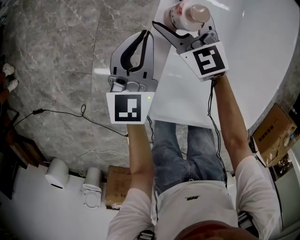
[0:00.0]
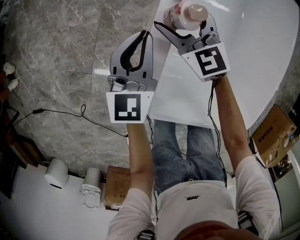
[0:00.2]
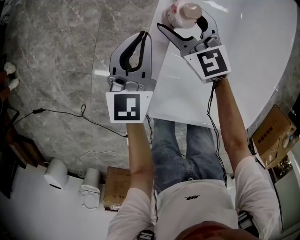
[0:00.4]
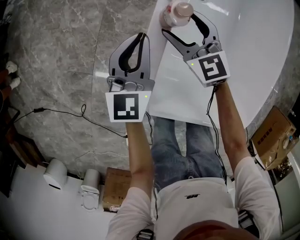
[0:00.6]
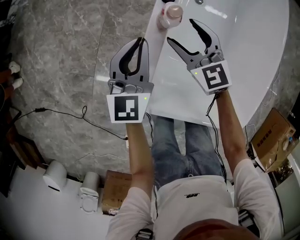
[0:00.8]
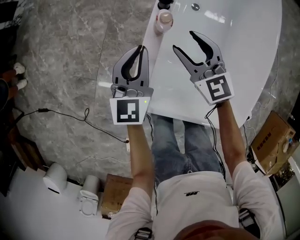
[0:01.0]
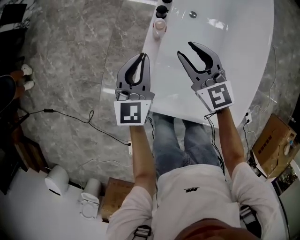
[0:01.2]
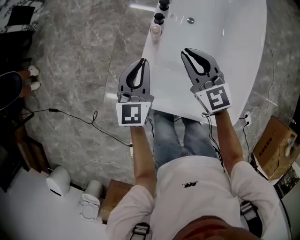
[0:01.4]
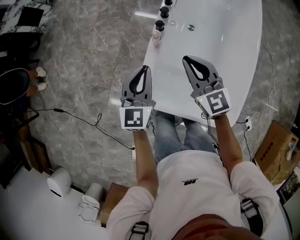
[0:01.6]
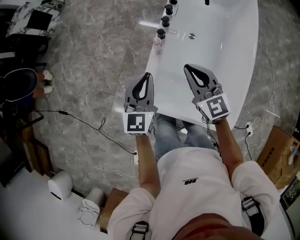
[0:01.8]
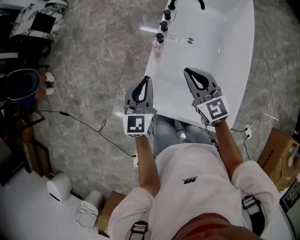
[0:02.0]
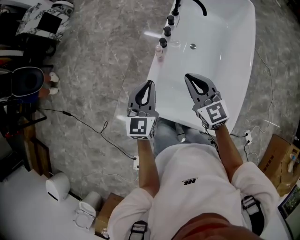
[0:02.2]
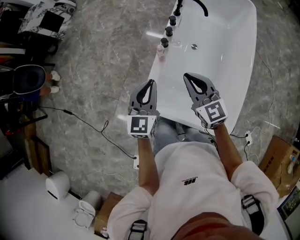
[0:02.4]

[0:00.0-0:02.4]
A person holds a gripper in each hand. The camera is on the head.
0:00.0 to 0:01.2: The two grippers go about 20 cm upward and backward. The right gripper closes up.
0:01.2 to 0:02.4: Both grippers travel together upward and backward, some 25 cm. The right gripper closes its fingers.

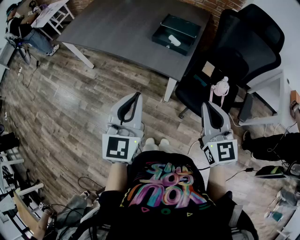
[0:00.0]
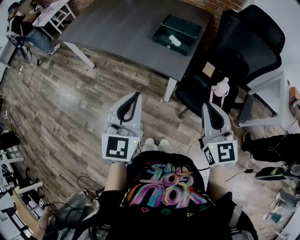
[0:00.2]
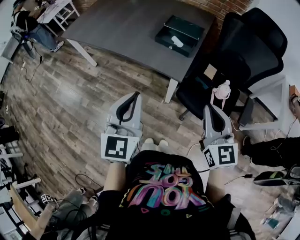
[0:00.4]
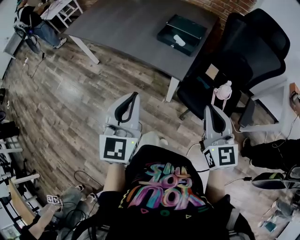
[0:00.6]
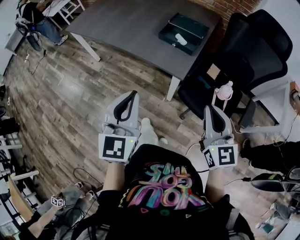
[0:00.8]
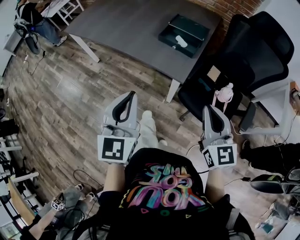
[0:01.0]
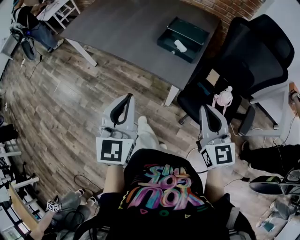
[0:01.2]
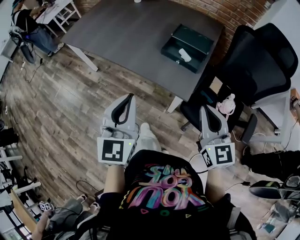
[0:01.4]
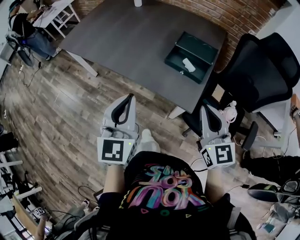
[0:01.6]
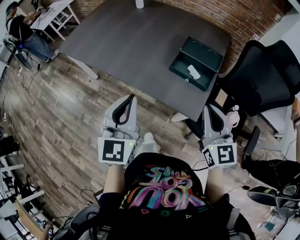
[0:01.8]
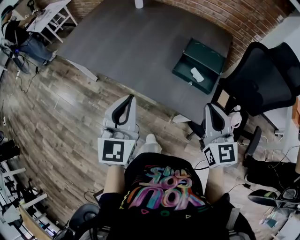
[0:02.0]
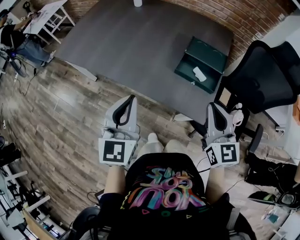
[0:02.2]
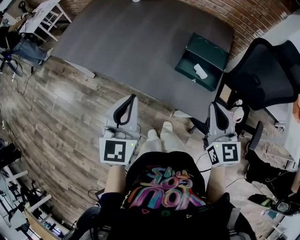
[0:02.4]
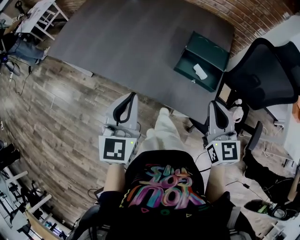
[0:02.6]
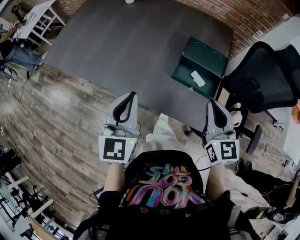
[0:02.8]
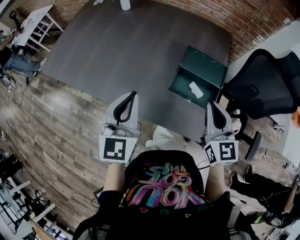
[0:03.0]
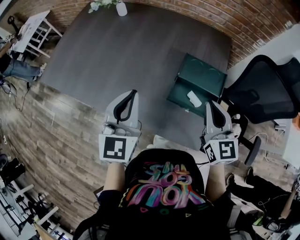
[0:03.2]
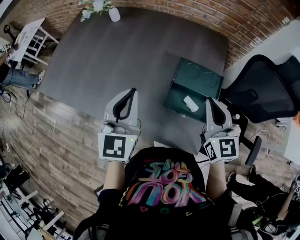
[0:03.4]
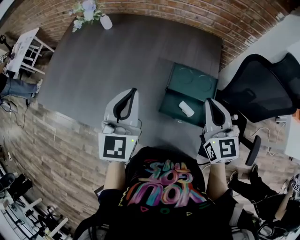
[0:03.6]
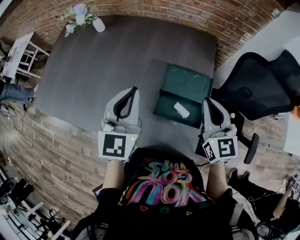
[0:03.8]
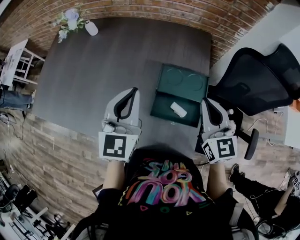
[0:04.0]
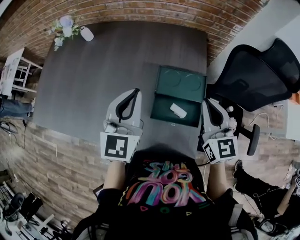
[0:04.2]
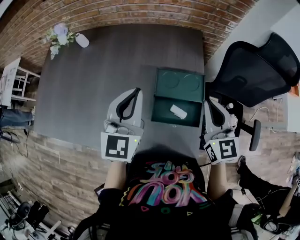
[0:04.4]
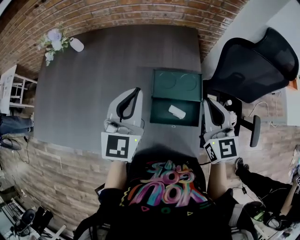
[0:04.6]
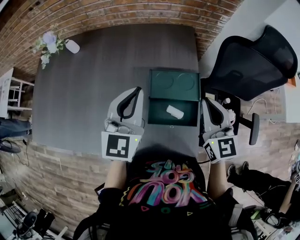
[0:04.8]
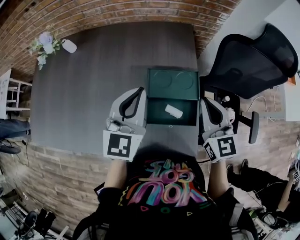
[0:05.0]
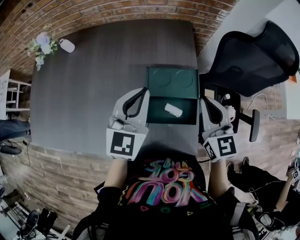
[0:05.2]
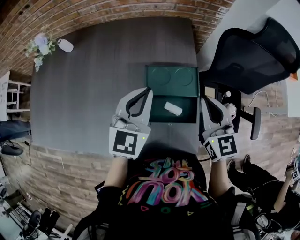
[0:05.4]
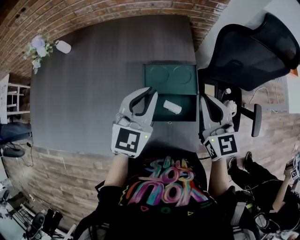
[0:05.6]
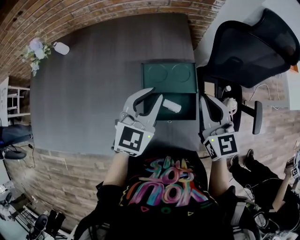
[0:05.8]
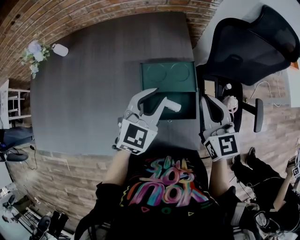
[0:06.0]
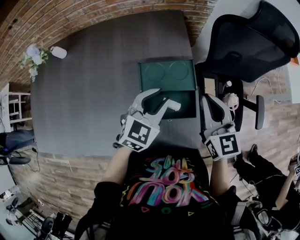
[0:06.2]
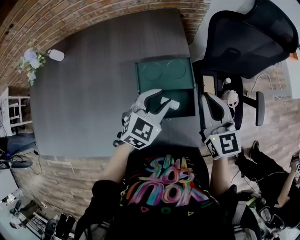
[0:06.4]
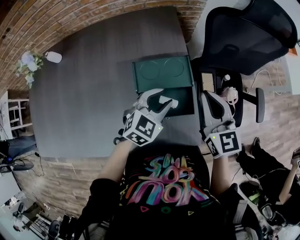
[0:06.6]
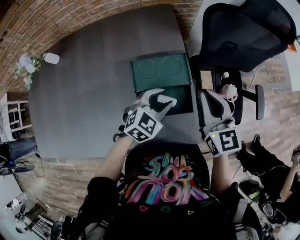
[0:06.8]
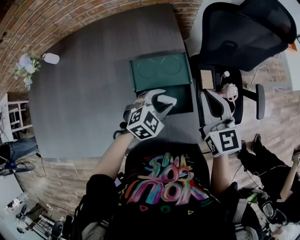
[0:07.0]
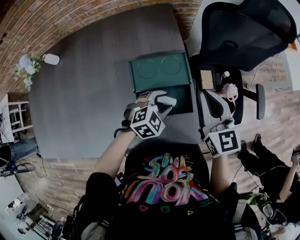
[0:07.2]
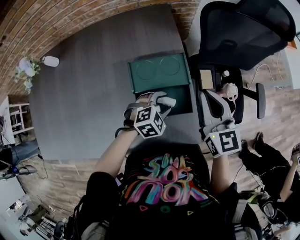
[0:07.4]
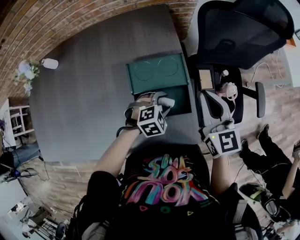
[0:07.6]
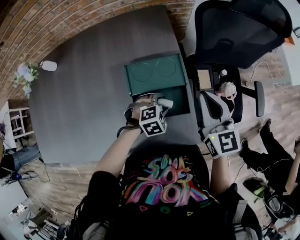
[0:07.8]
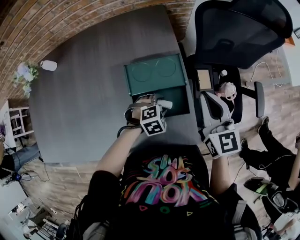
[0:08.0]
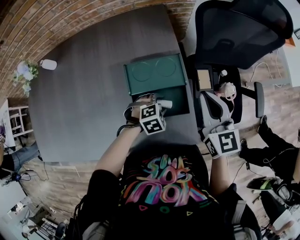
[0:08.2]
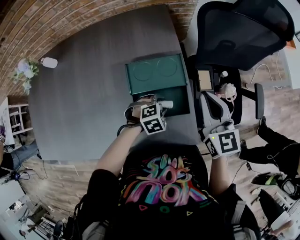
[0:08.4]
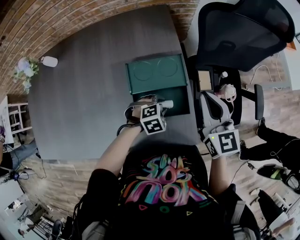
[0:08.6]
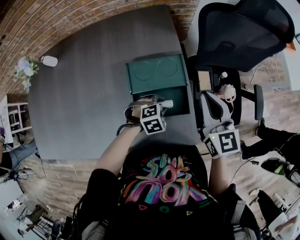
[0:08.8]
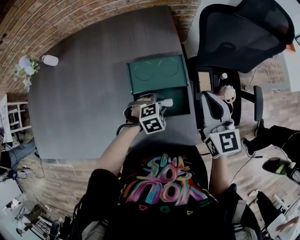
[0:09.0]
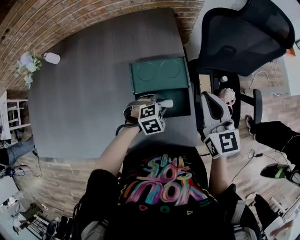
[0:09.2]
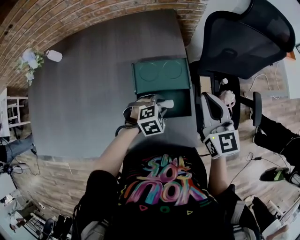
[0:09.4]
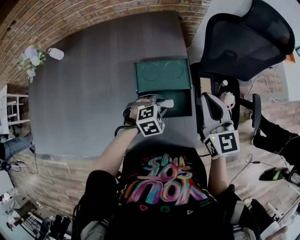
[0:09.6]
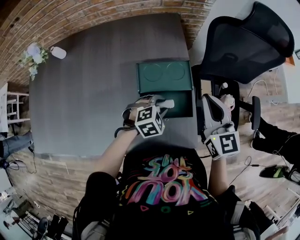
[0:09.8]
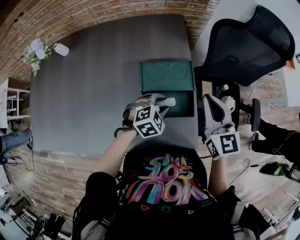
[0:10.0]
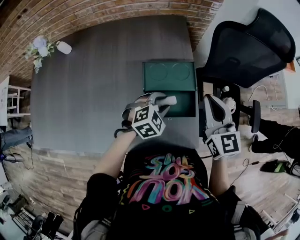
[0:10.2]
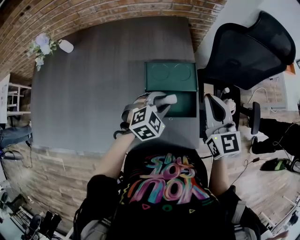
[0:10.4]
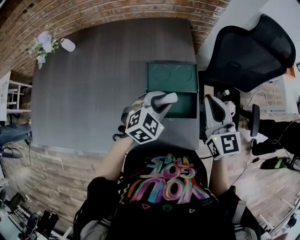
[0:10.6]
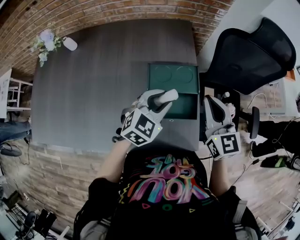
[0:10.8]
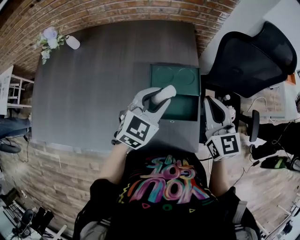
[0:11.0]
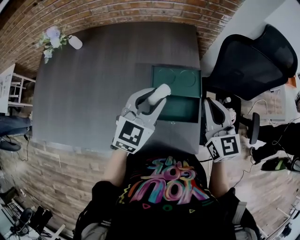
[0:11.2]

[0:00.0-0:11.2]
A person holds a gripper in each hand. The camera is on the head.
0:00.0 to 0:01.6: The left gripper goes approximately 20 cm forward and to the left, while the right gripper heads forward, covering approximately 15 cm.
0:01.6 to 0:03.2: Both grippers move forward, approximately 25 cm.
0:03.2 to 0:04.8: The left gripper shifts approximately 20 cm forward and to the right, and swivels roughly 20 degrees, while the right gripper moves to the right and forward, some 10 cm.
0:04.8 to 0:06.4: The right gripper shifts by some 5 cm; the left gripper heads downward and to the right, covering about 20 cm, swivels about 40 degrees, and opens up.
0:06.4 to 0:08.0: The left gripper moves downward, some 15 cm, and points its fingers about 30 degrees further downward.
0:08.0 to 0:09.6: There are only small adjustments of the grippers.
0:09.6 to 0:11.2: The left gripper moves upward and to the left, some 25 cm, and angles its fingers upward, by roughly 40 degrees, while the right gripper changes place by roughly 5 cm.

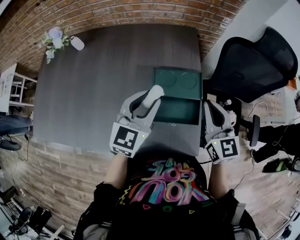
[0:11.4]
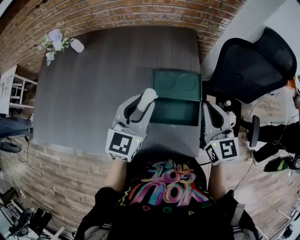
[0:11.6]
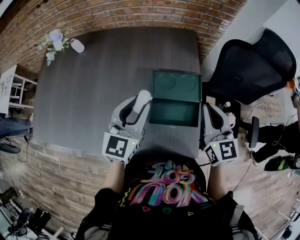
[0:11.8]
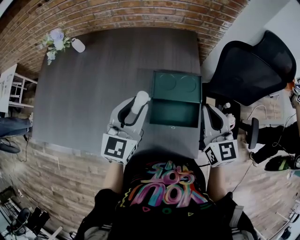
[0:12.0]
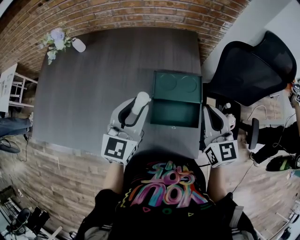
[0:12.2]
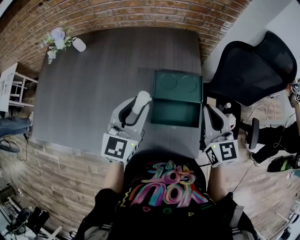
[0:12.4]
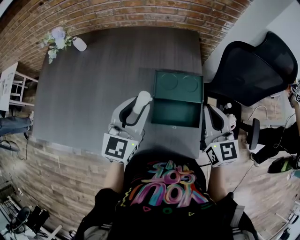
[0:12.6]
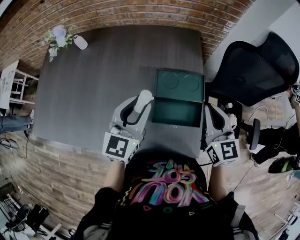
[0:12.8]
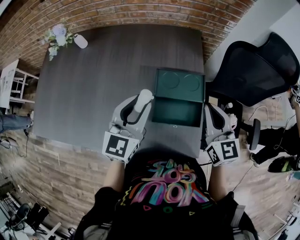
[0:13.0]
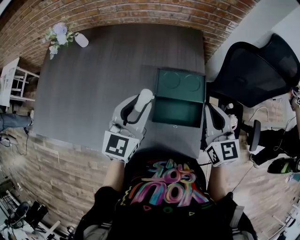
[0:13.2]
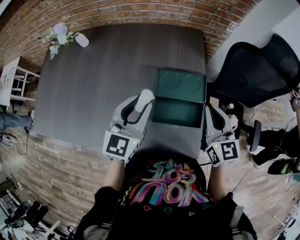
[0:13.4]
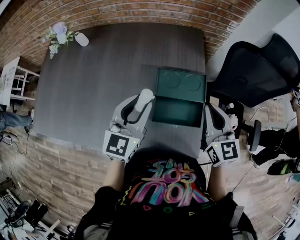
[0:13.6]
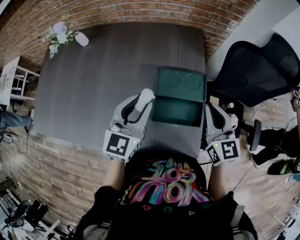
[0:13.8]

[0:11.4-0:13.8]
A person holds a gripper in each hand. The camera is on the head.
0:11.4 to 0:12.6: There are only small adjustments of the grippers.
0:12.6 to 0:13.8: Both grippers stay put.

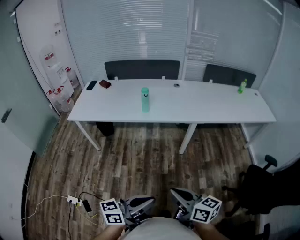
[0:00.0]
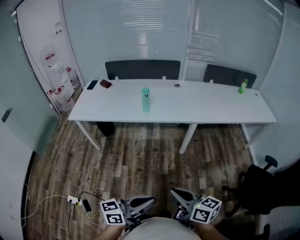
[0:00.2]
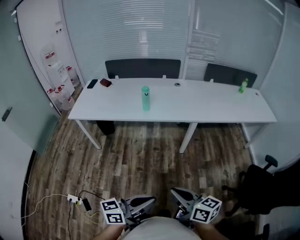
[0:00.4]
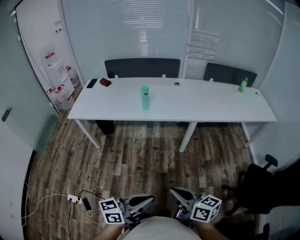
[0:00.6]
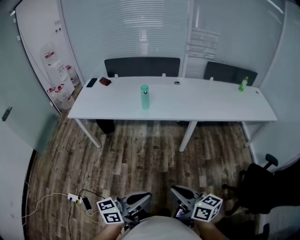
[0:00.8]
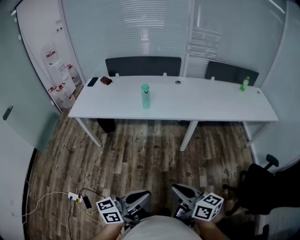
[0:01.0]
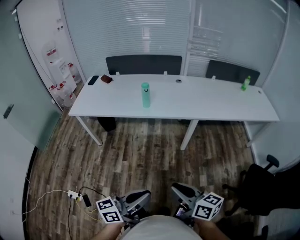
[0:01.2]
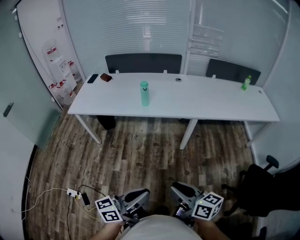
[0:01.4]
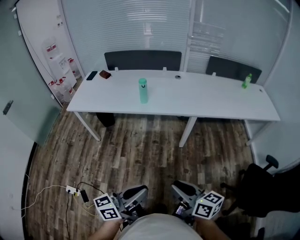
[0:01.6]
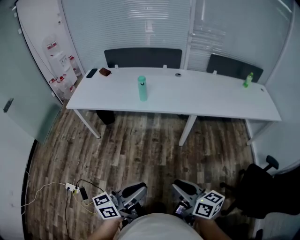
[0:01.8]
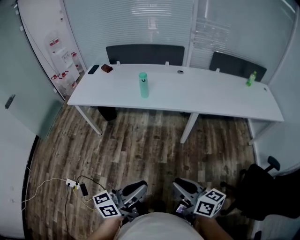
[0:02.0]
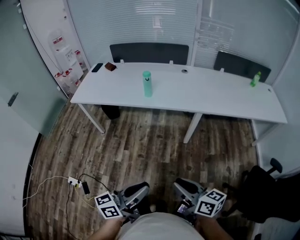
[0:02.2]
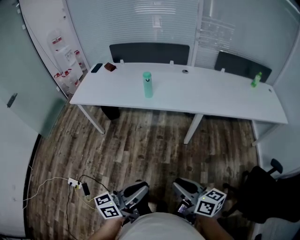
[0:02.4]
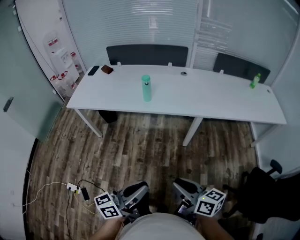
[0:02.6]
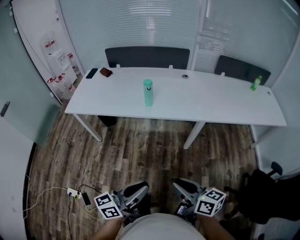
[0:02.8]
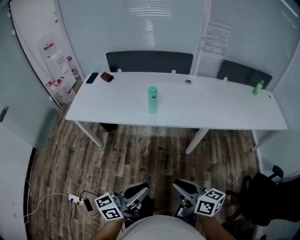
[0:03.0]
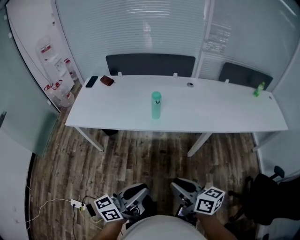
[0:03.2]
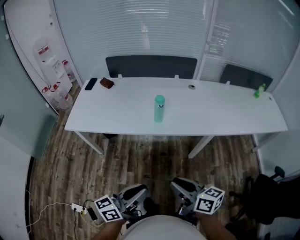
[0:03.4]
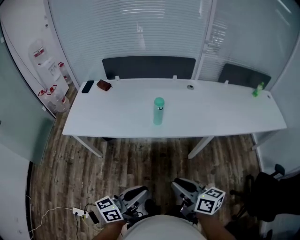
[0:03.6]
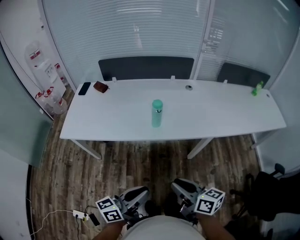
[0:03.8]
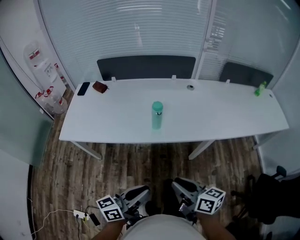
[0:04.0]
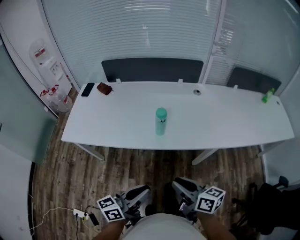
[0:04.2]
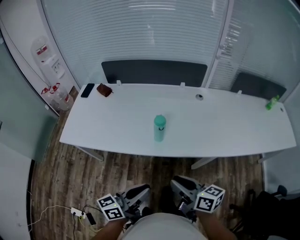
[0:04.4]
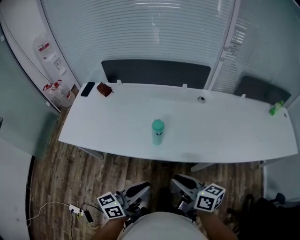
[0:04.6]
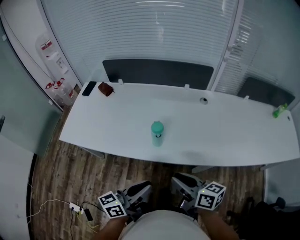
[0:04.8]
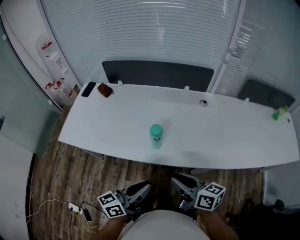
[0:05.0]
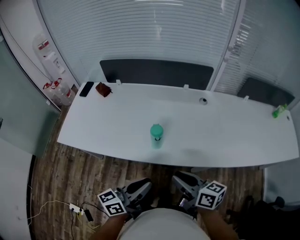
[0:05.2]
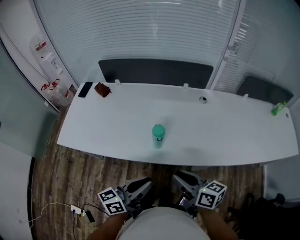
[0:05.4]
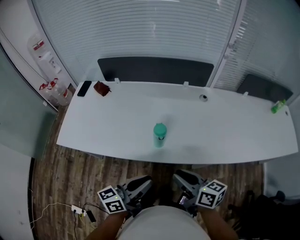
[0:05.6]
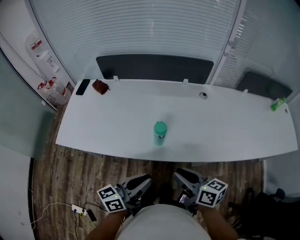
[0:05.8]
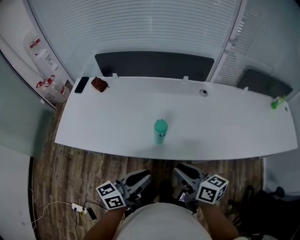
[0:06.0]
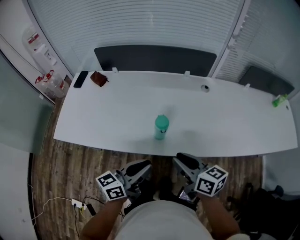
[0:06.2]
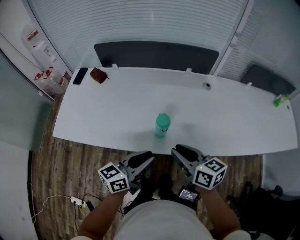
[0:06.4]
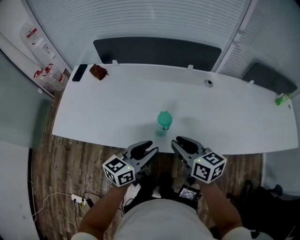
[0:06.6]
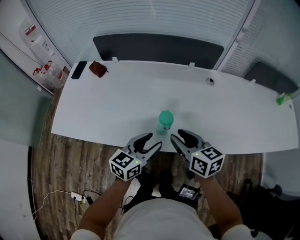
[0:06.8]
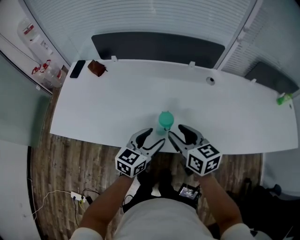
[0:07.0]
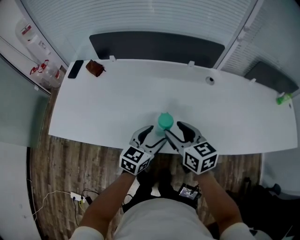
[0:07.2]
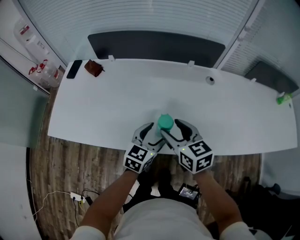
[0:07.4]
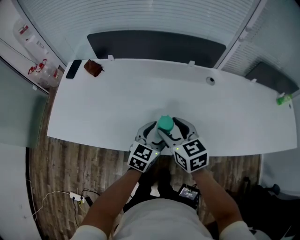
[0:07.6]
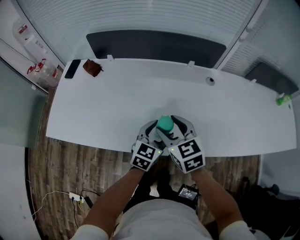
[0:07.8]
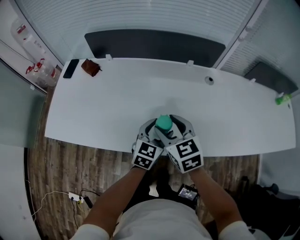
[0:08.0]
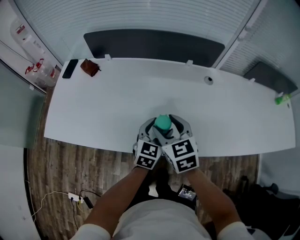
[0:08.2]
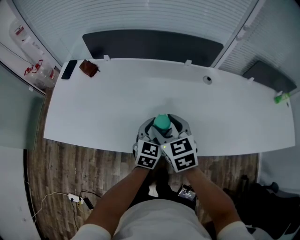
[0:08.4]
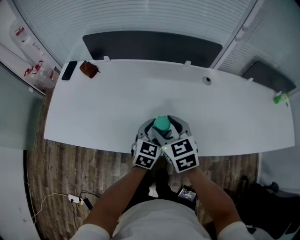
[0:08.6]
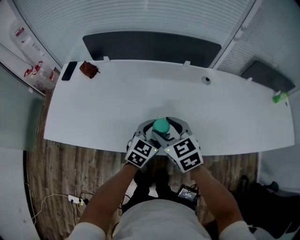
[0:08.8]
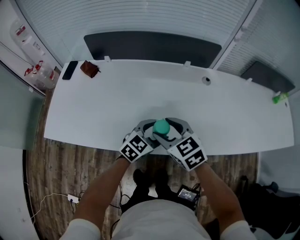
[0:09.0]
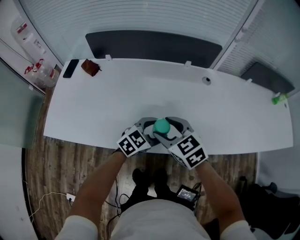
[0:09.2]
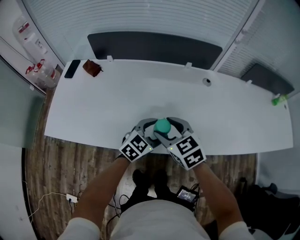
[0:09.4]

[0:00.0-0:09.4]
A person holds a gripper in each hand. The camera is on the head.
0:00.0 to 0:01.6: The right gripper travels to the right by some 5 cm.
0:01.6 to 0:03.2: The two grippers go about 20 cm forward and to the left.
0:03.2 to 0:04.8: The two grippers go about 25 cm forward.
0:04.8 to 0:06.2: The two grippers go about 10 cm forward.
0:06.2 to 0:07.8: The right gripper heads forward and to the left, covering some 15 cm, rotates approximately 40 degrees, and opens, while the left gripper shifts roughly 20 cm forward and downward, turns by some 40 degrees, and opens.
0:07.8 to 0:09.4: The left gripper turns by some 20 degrees.
